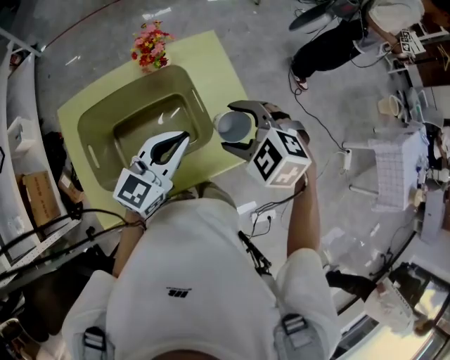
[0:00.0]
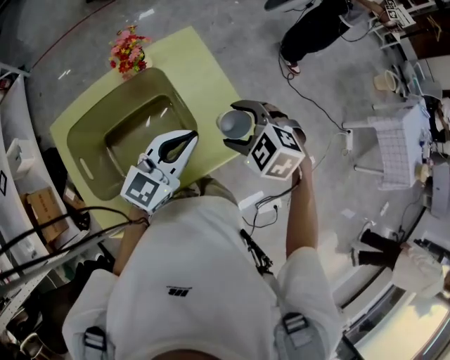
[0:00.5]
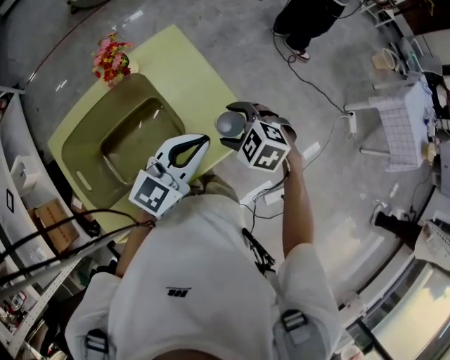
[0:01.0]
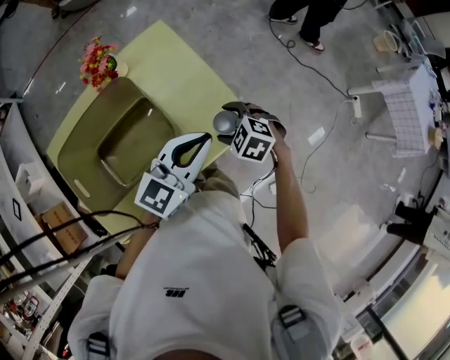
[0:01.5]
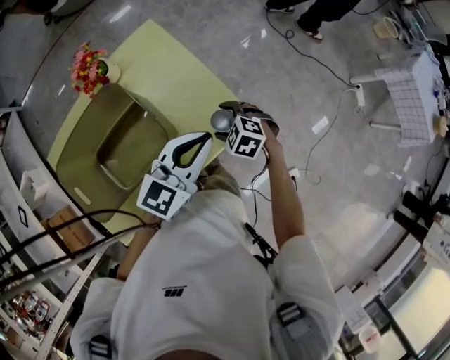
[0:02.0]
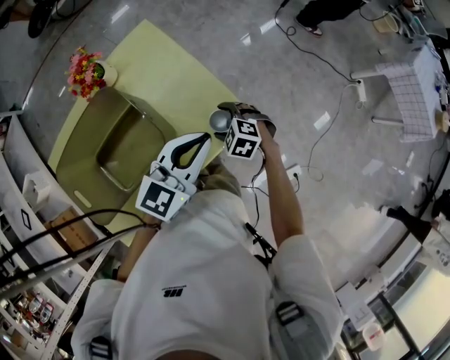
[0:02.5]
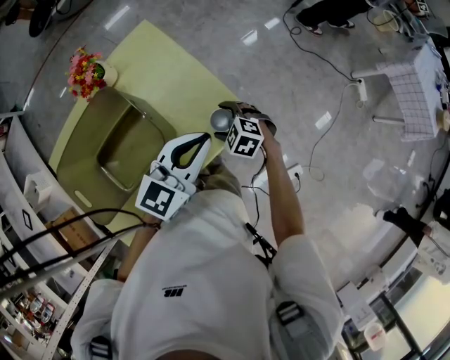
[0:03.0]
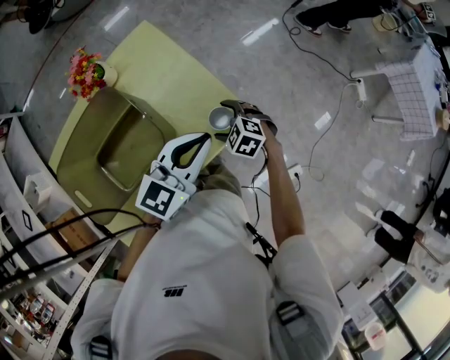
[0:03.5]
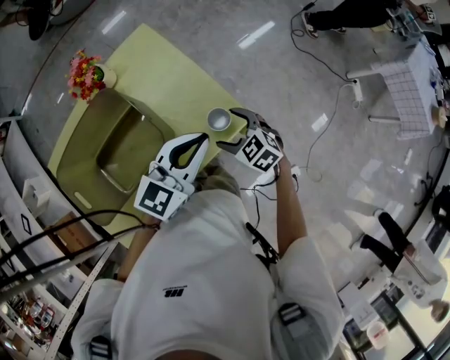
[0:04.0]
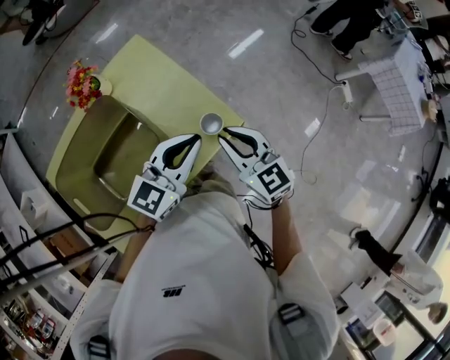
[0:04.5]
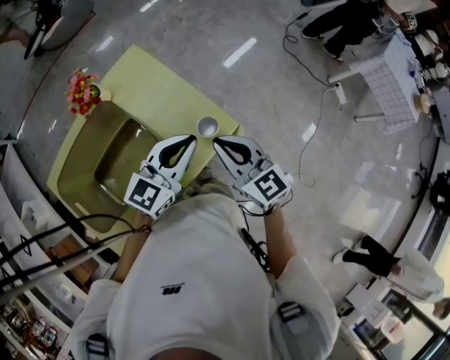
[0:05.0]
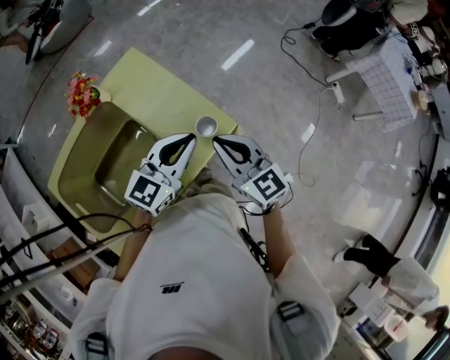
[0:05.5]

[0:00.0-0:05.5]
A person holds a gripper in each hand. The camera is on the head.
0.0 to 2.0 s: The left gripper travels to the right by approximately 20 cm. The right gripper shifts roughly 30 cm downward and to the right, and swivels roughly 30 degrees.
2.0 to 3.5 s: The grippers make only small movements.
3.5 to 5.5 s: The right gripper is displaced upward by approximately 25 cm, points its fingers about 50 degrees further upward, and closes up.

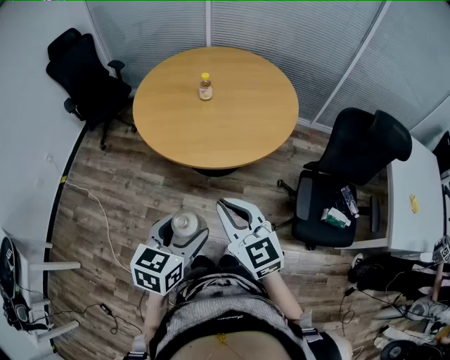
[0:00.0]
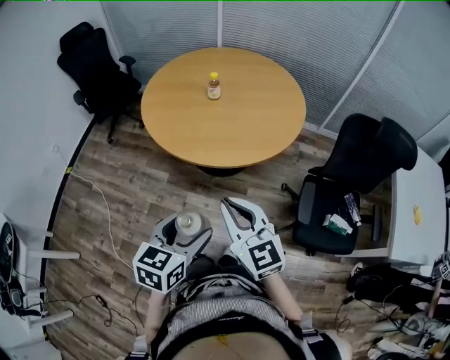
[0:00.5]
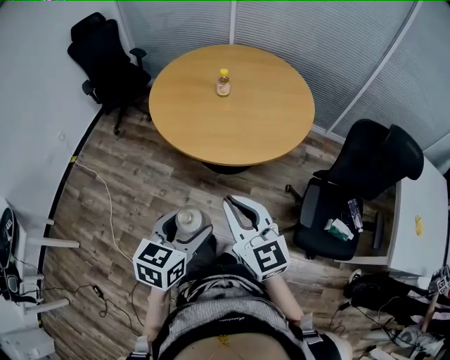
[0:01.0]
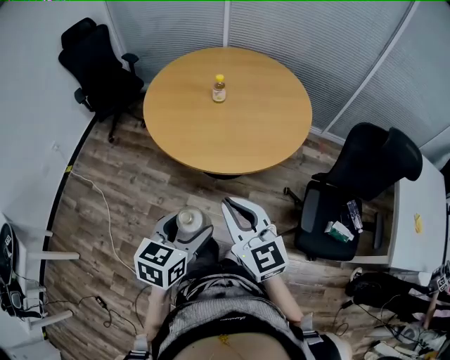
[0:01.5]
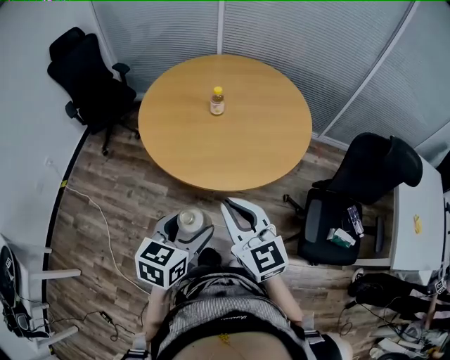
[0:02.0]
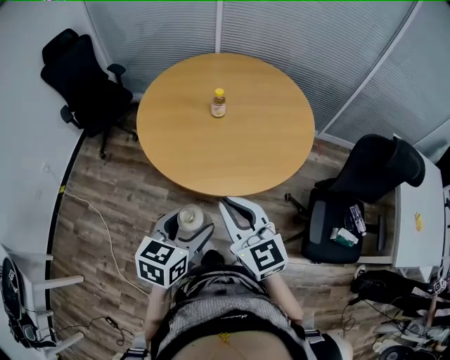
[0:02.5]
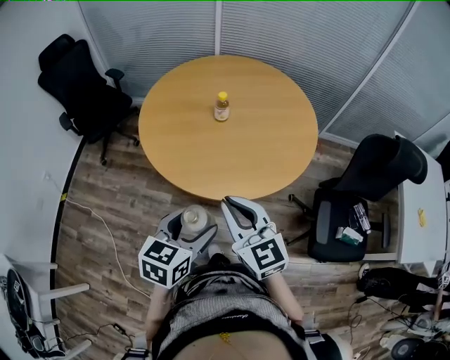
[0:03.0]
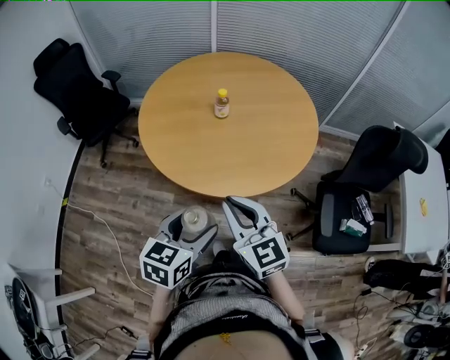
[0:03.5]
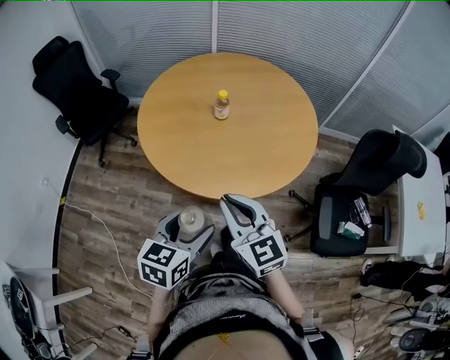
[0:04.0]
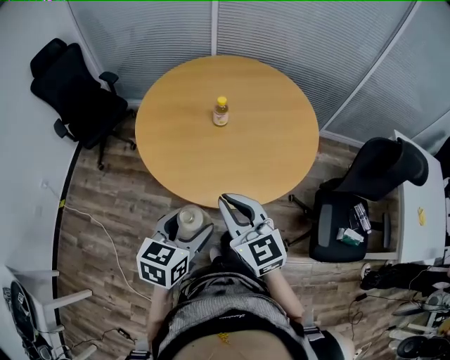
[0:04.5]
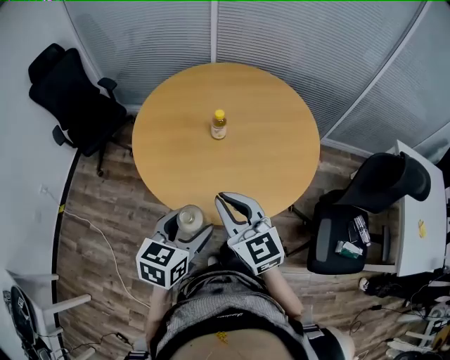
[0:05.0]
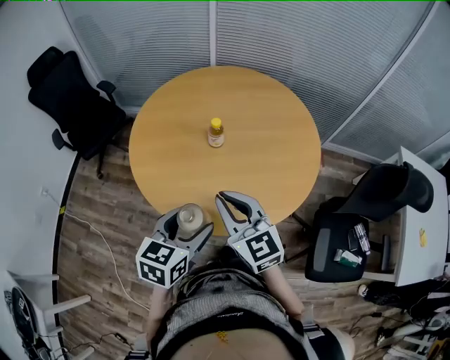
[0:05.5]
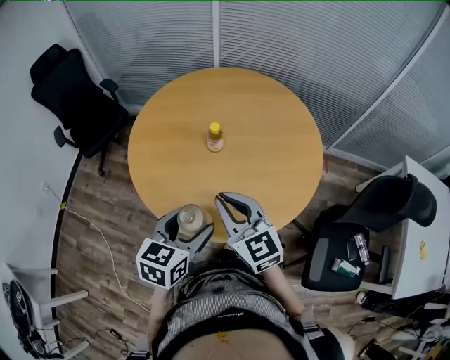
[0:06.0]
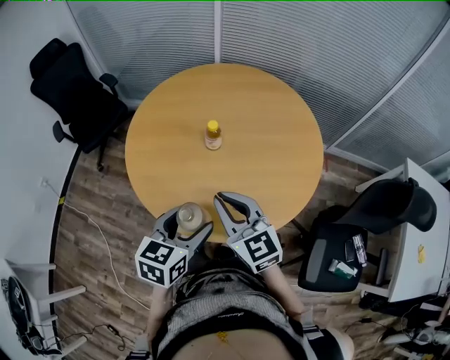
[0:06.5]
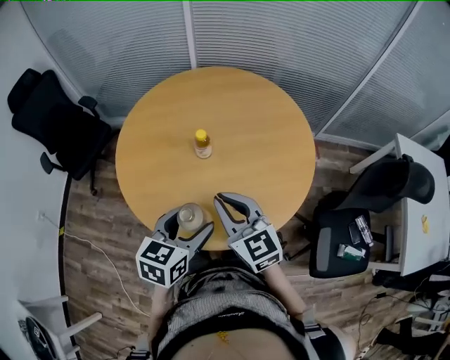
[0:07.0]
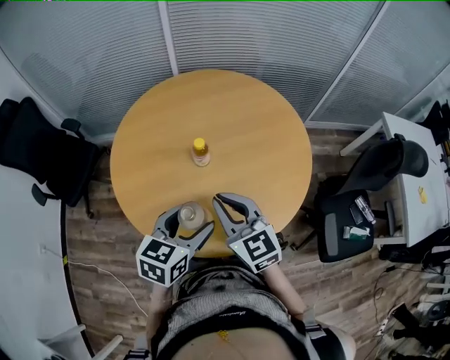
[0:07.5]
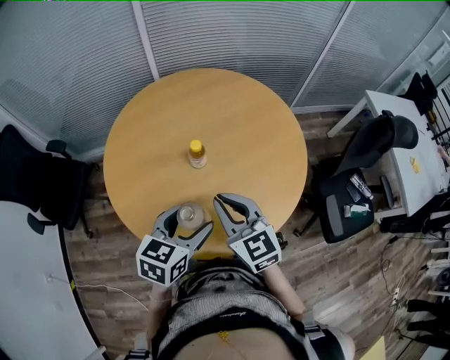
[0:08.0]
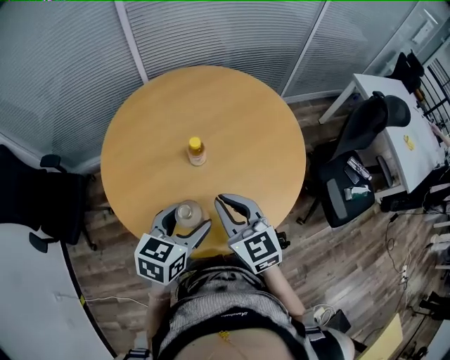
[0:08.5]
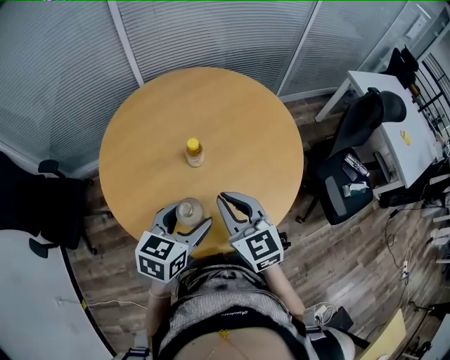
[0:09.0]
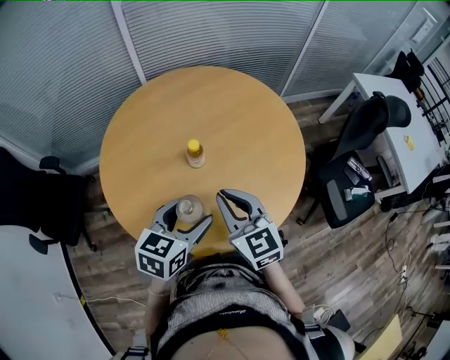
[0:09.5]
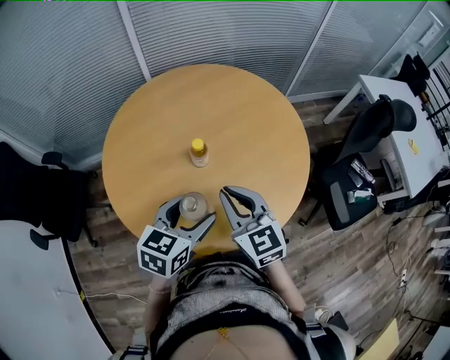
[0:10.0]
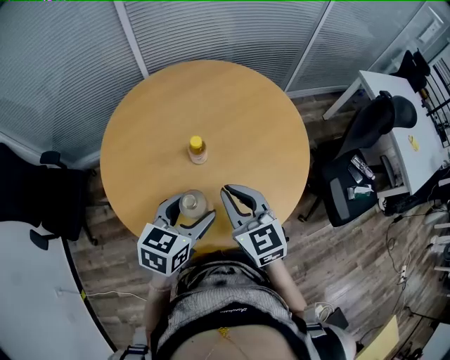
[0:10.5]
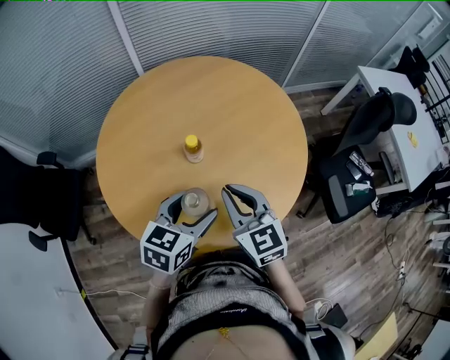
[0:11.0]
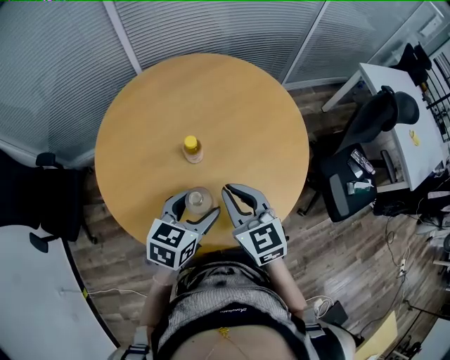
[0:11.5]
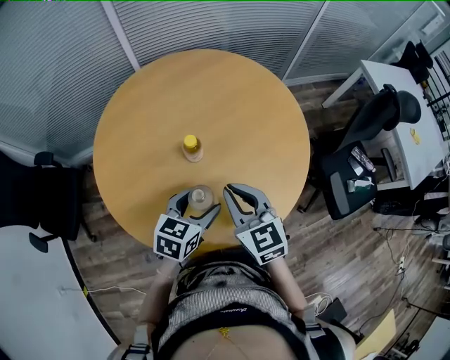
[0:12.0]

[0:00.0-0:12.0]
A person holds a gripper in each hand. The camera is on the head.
0.0 to 2.0 s: The two grippers go roughly 10 cm forward.
2.0 to 4.0 s: Both grippers travel together to the left and forward, roughly 10 cm.
4.0 to 6.0 s: The two grippers go about 20 cm forward.
6.0 to 8.0 s: The left gripper changes place by roughly 15 cm, and changes its angle by about 30 degrees. The right gripper shifts by some 10 cm, and changes its angle by roughly 30 degrees.
8.0 to 10.0 s: There are only small adjustments of the grippers.
10.0 to 12.0 s: The left gripper moves downward, approximately 10 cm.

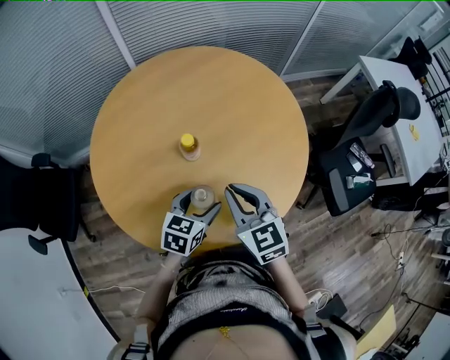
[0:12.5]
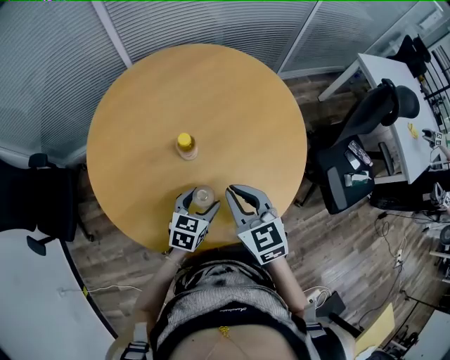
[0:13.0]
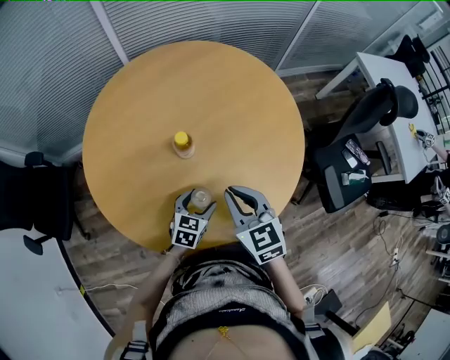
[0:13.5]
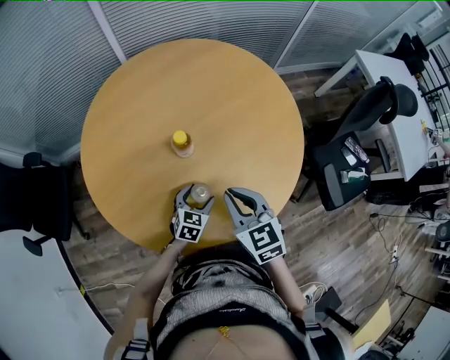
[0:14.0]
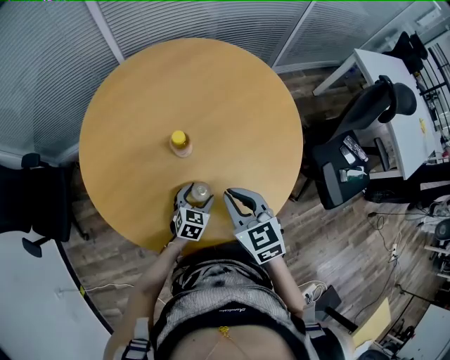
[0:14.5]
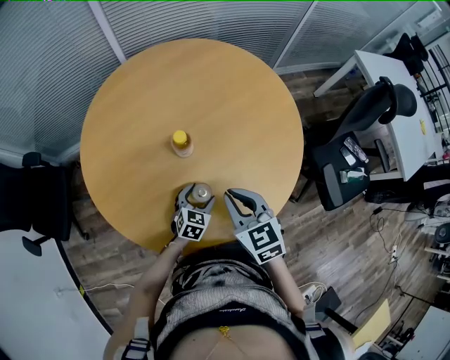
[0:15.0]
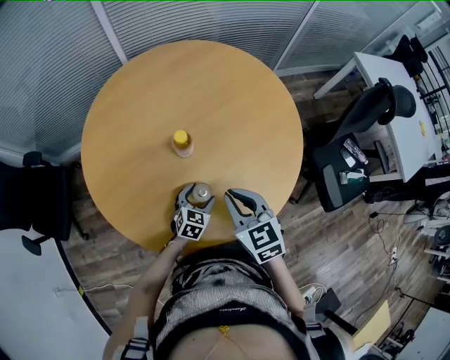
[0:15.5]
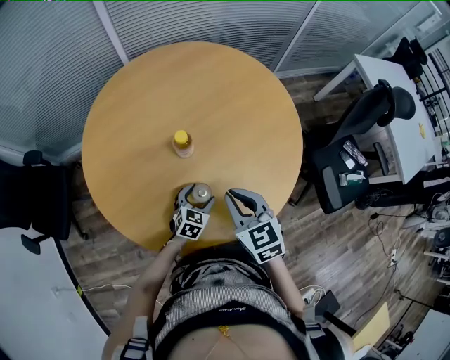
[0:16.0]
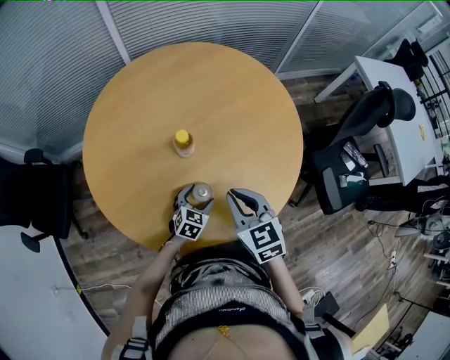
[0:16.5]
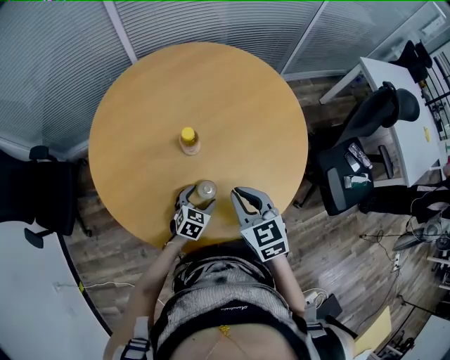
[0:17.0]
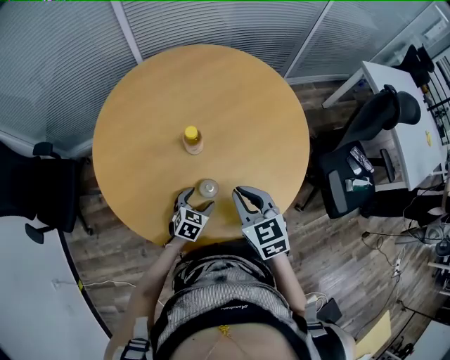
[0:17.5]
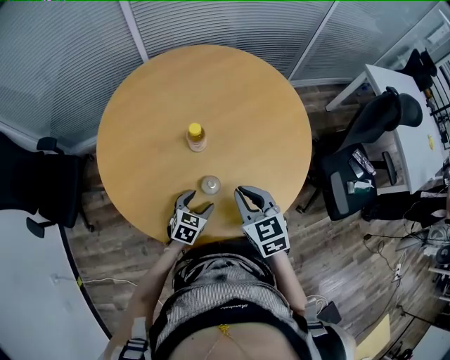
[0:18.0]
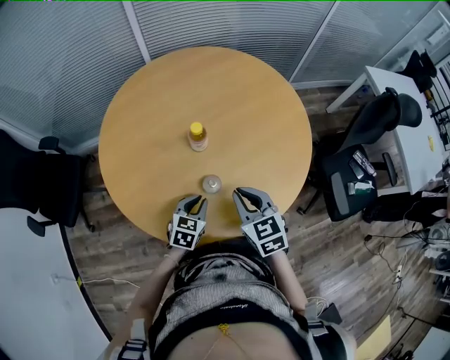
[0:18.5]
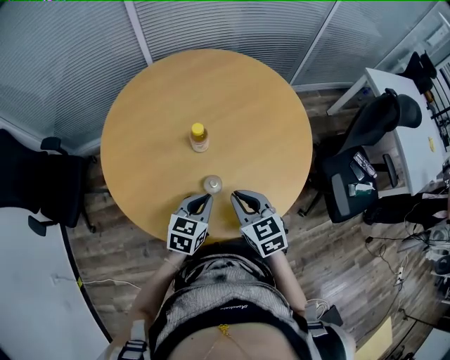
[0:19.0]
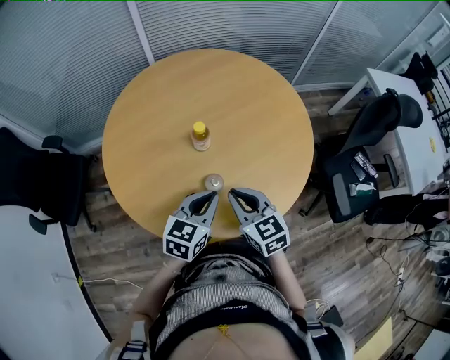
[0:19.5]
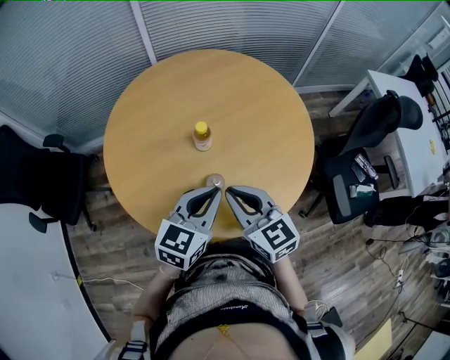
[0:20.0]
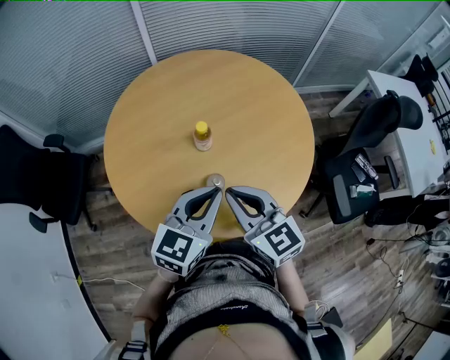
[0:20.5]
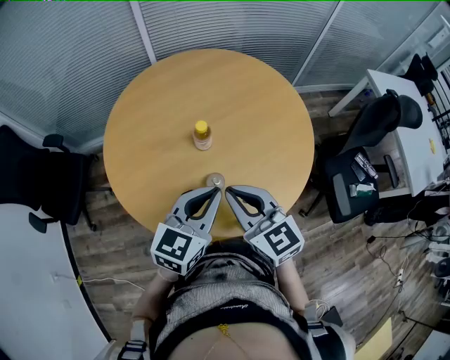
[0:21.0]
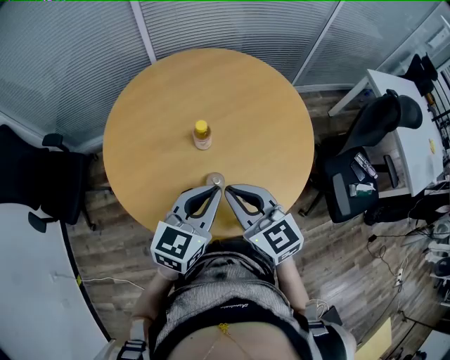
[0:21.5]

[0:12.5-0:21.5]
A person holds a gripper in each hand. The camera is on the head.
12.5 to 14.5 s: The left gripper goes some 15 cm downward.
14.5 to 17.0 s: The grippers stay close to where they were, moving slightly.
17.0 to 19.5 s: The left gripper goes roughly 20 cm upward, changes its angle by roughly 20 degrees, and closes its fingers.
19.5 to 21.5 s: The two grippers go approximately 10 cm upward.

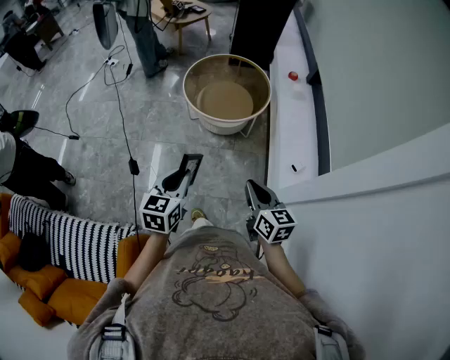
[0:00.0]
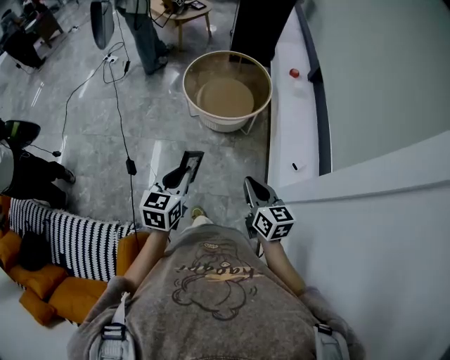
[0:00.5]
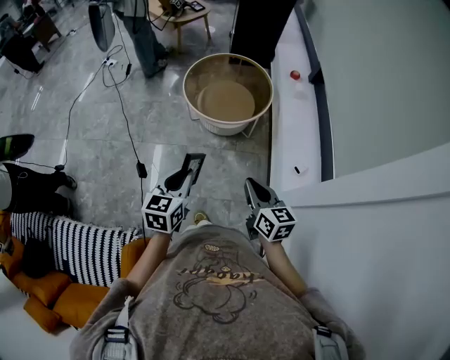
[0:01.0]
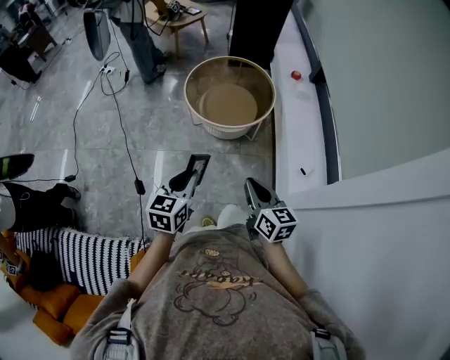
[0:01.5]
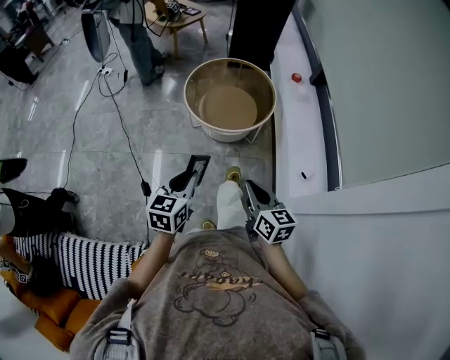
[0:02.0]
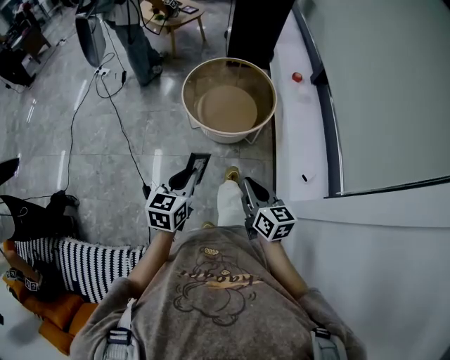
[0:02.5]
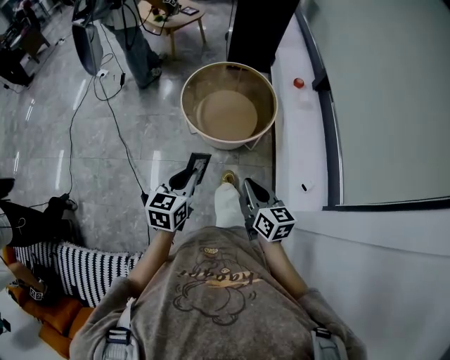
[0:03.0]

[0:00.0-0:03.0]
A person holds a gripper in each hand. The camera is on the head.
0.0 to 1.5 s: The two grippers go approximately 5 cm forward.
1.5 to 3.0 s: Both grippers travel together forward, some 10 cm.
